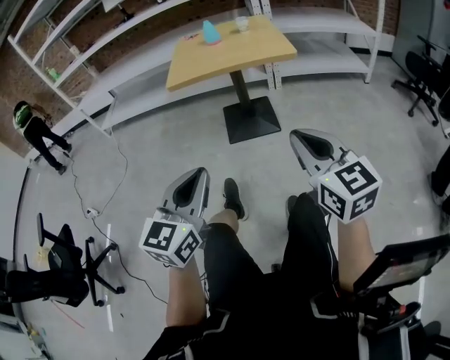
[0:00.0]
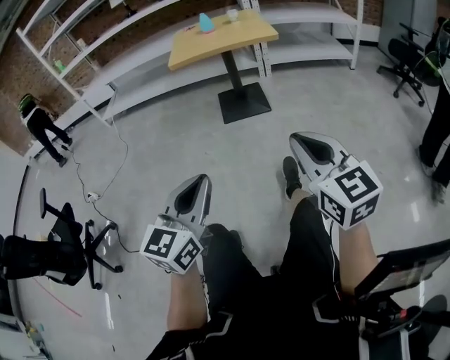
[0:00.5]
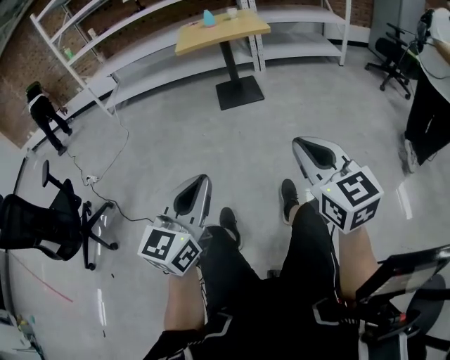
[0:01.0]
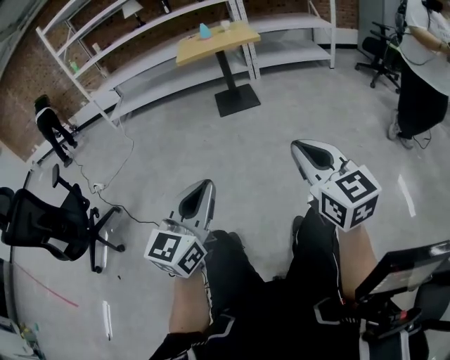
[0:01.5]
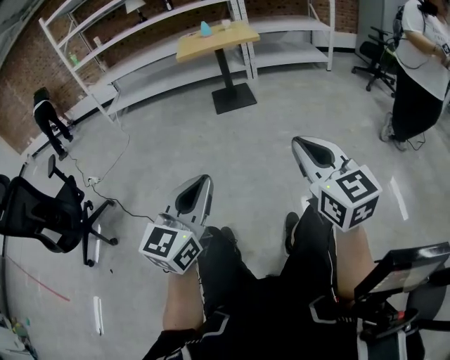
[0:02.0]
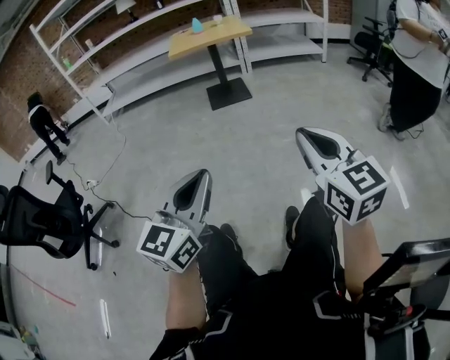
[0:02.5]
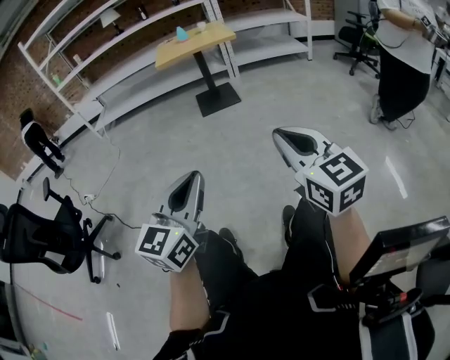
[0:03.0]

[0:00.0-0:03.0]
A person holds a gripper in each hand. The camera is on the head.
0:00.0 to 0:01.5: The two grippers travel together, backward, approximately 50 cm.
0:01.5 to 0:03.0: The grippers stay close to where they were, moving slightly.

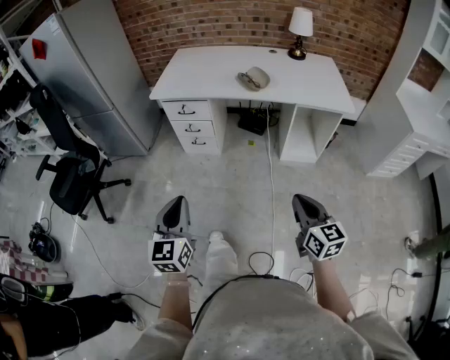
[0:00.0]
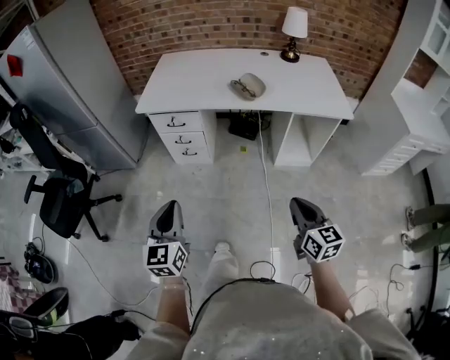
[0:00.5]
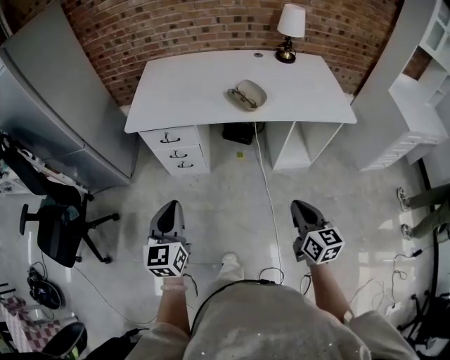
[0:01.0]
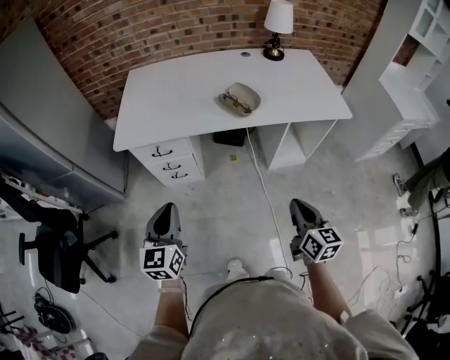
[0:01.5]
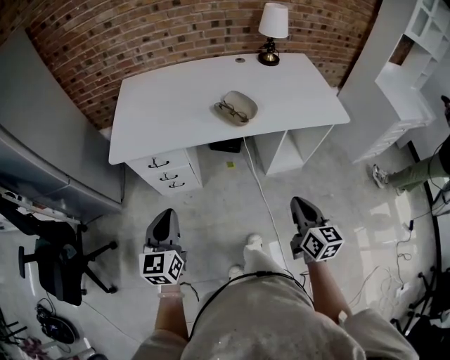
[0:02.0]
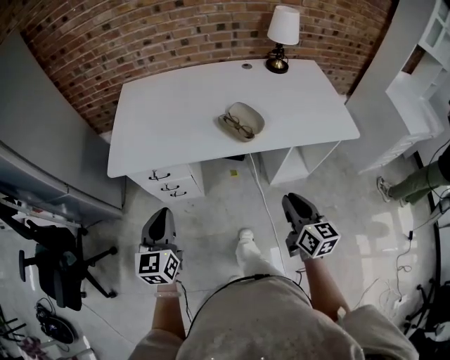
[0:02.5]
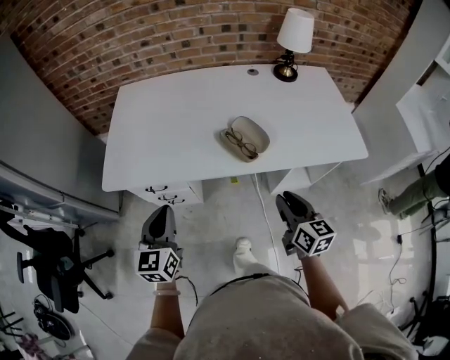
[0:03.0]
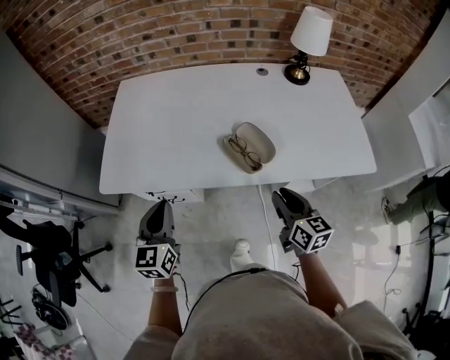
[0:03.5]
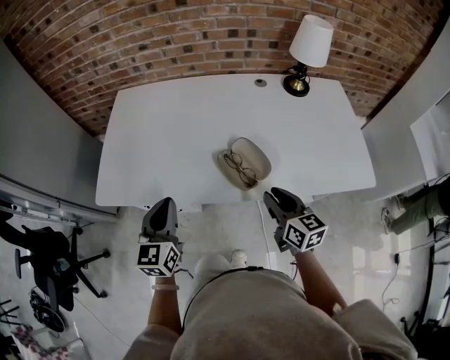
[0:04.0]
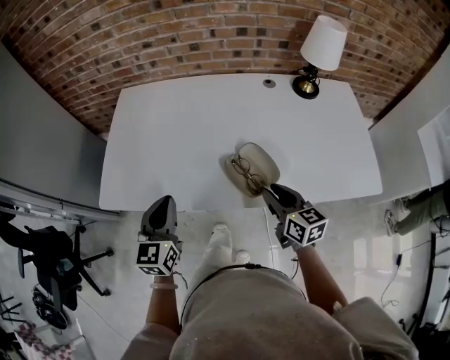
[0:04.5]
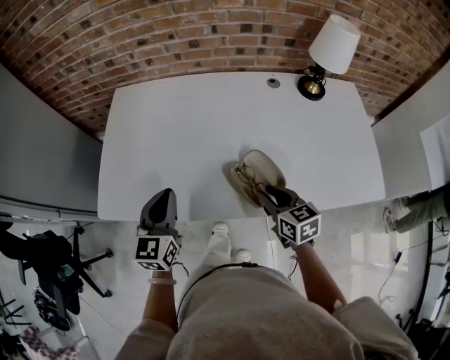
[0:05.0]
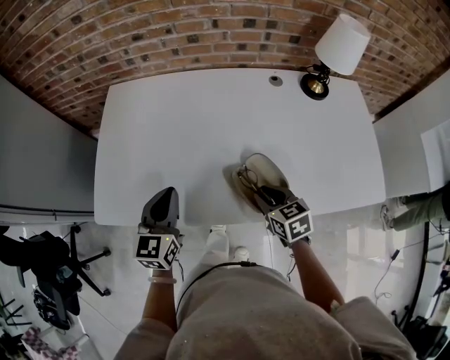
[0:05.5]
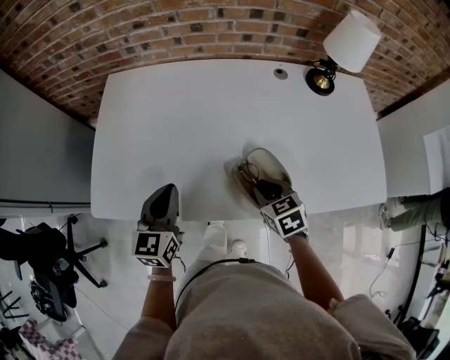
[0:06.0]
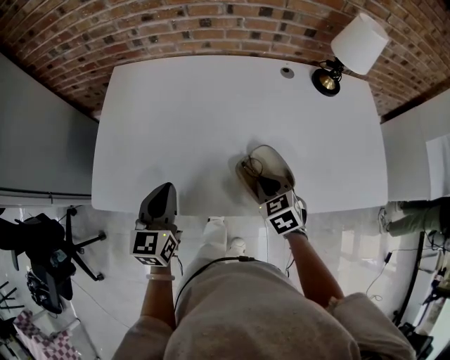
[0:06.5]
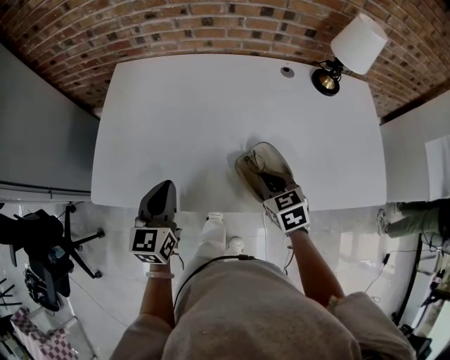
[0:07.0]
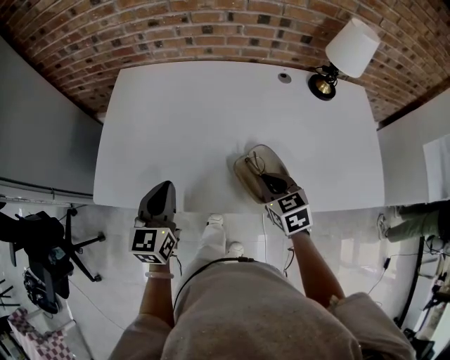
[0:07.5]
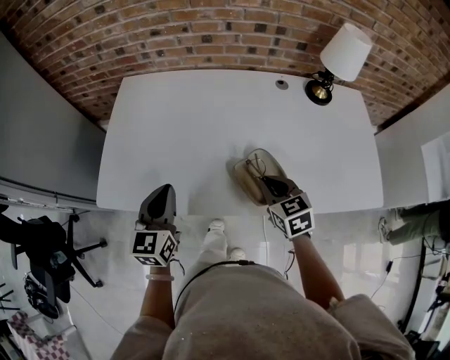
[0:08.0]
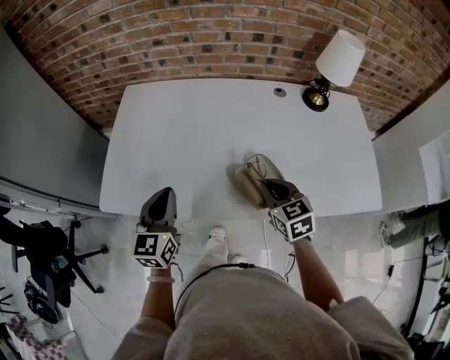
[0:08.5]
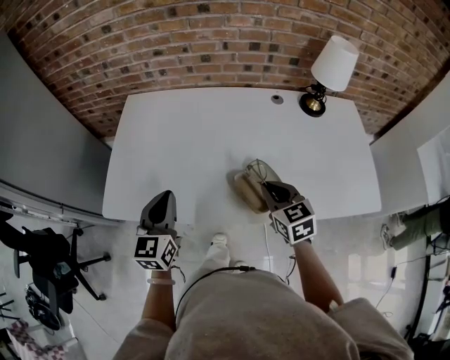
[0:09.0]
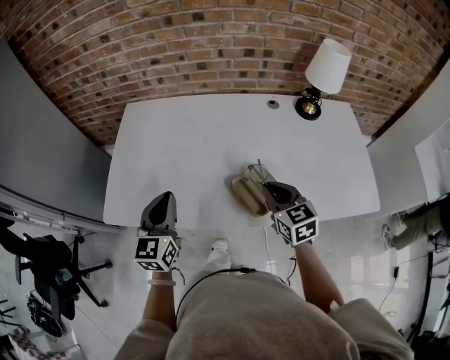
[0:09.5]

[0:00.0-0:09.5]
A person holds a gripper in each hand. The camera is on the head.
0:00.0 to 0:02.0: The grippers both shift forward by roughly 30 cm. The right gripper turns by some 20 degrees.
0:02.0 to 0:04.0: Both grippers travel together forward, approximately 30 cm. The right gripper opens.
0:04.0 to 0:05.5: The left gripper shifts about 10 cm forward, while the right gripper travels forward, downward and to the left by some 15 cm, and changes its angle by approximately 30 degrees.
0:05.5 to 0:07.5: The right gripper closes its fingers.
0:07.5 to 0:09.5: The two grippers go some 5 cm upward.

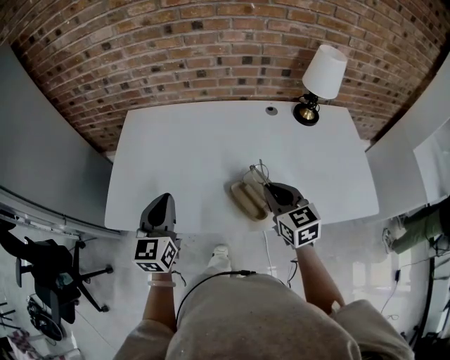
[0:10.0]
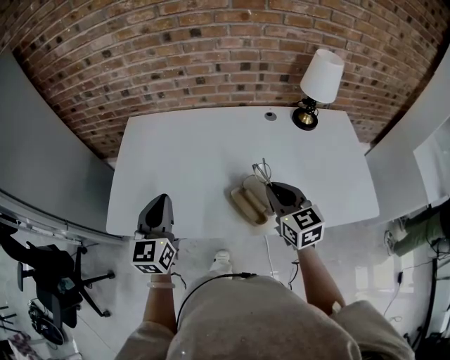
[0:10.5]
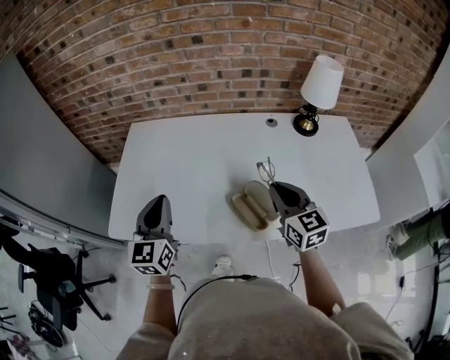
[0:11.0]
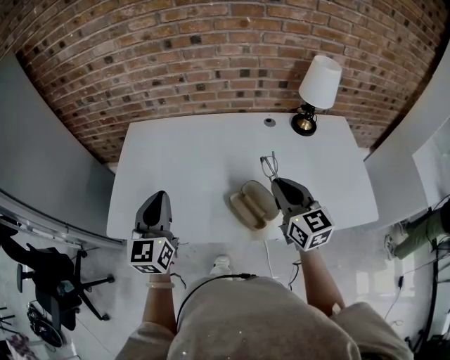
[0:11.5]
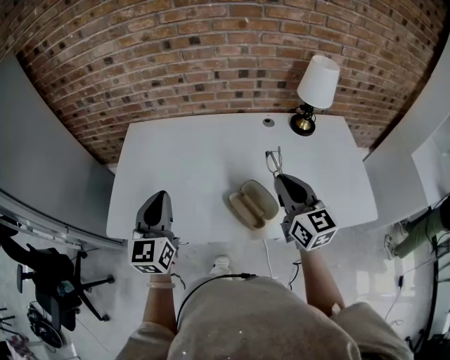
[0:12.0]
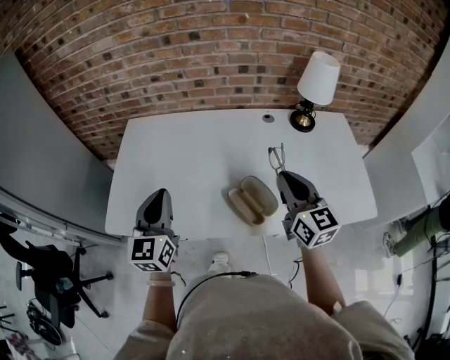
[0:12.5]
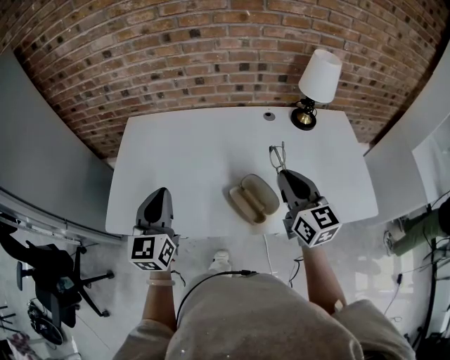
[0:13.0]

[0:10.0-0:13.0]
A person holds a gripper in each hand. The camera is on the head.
0:10.0 to 0:11.5: The left gripper shifts by about 5 cm. Meanwhile the right gripper moves upward, some 5 cm.
0:11.5 to 0:13.0: The grippers move only a little.

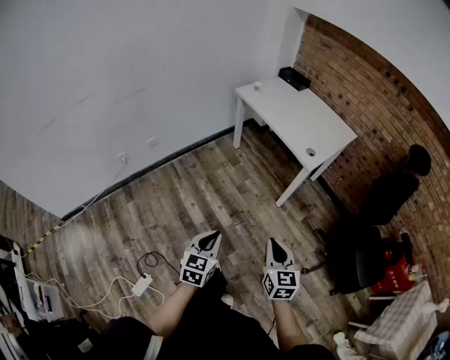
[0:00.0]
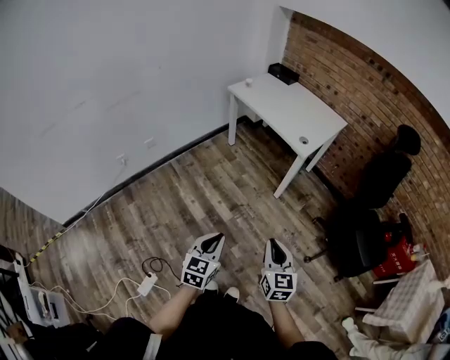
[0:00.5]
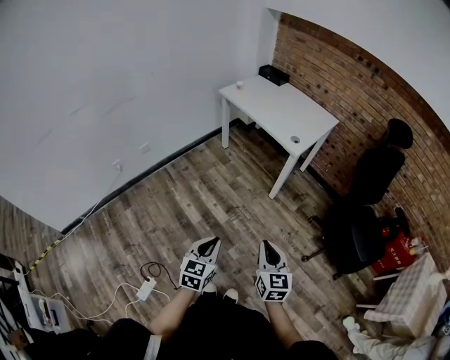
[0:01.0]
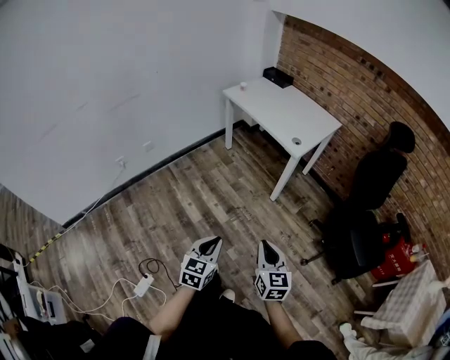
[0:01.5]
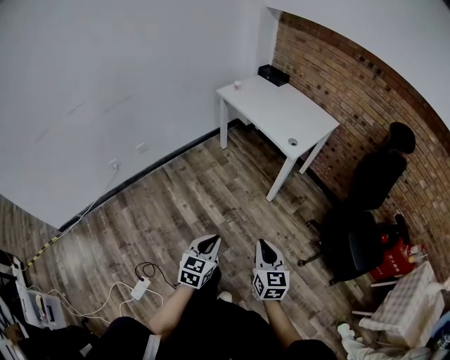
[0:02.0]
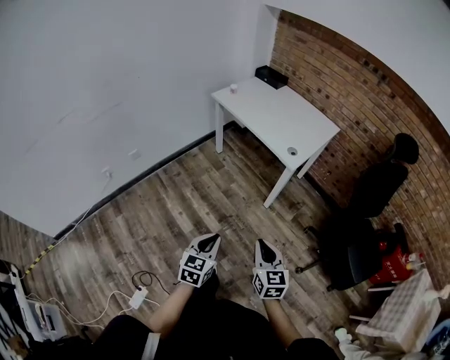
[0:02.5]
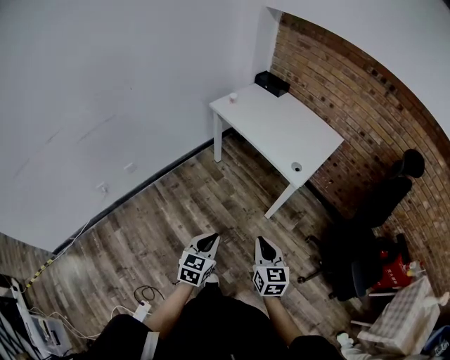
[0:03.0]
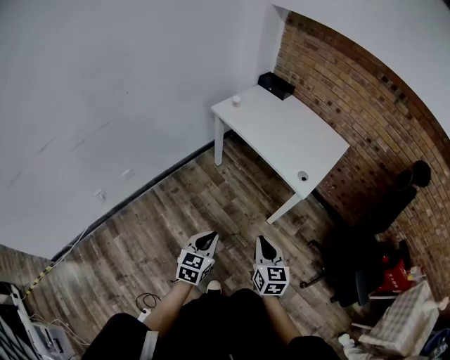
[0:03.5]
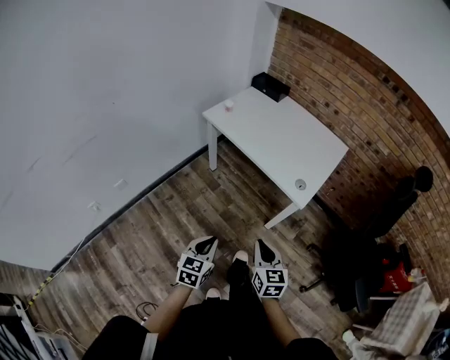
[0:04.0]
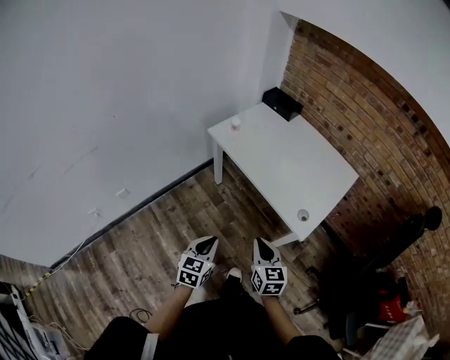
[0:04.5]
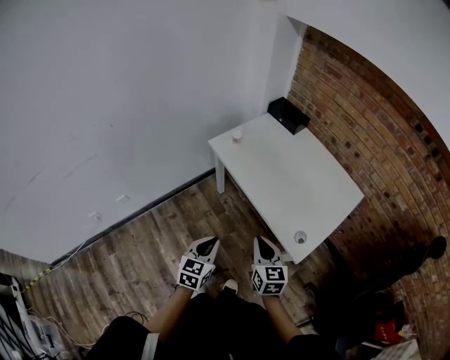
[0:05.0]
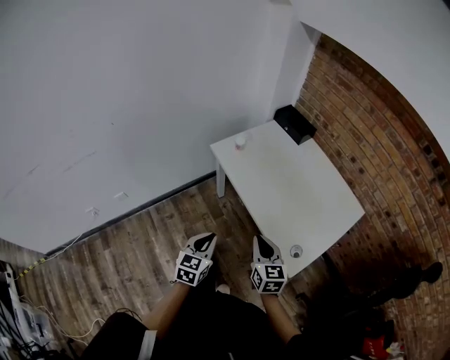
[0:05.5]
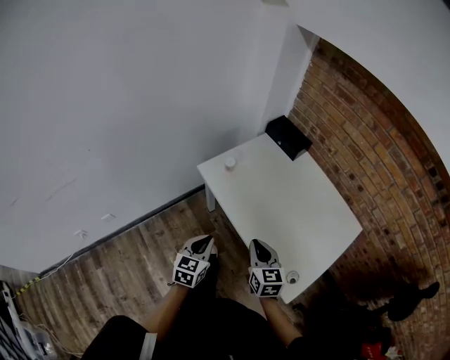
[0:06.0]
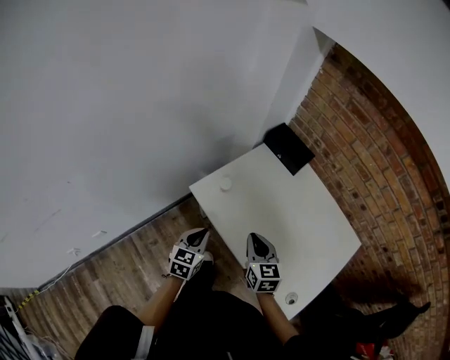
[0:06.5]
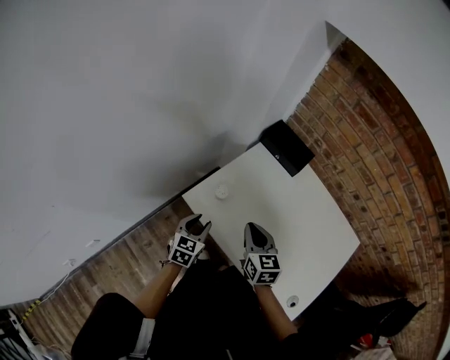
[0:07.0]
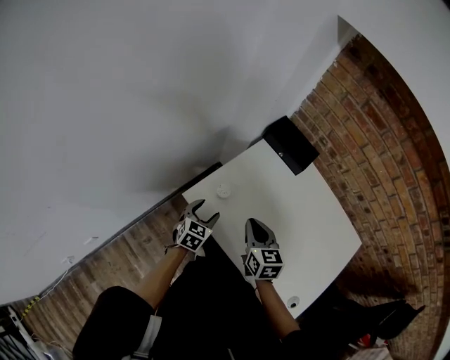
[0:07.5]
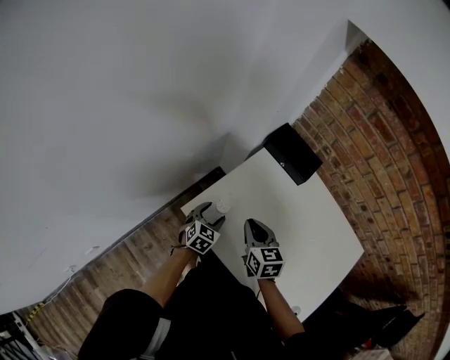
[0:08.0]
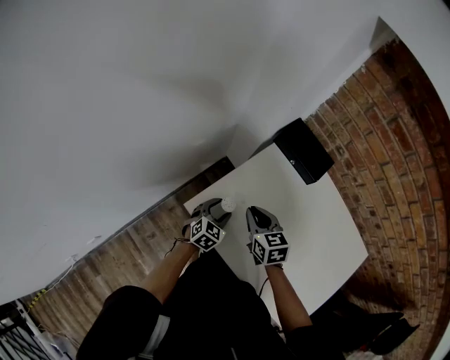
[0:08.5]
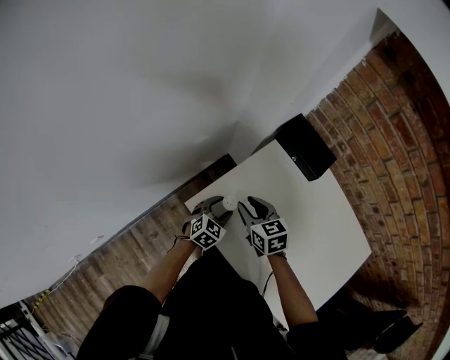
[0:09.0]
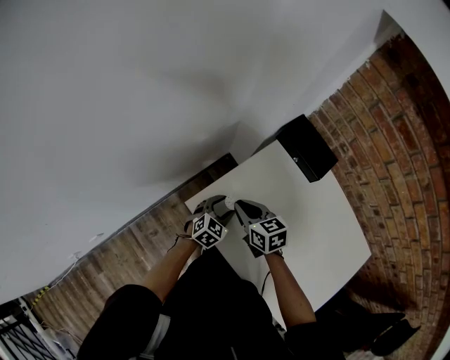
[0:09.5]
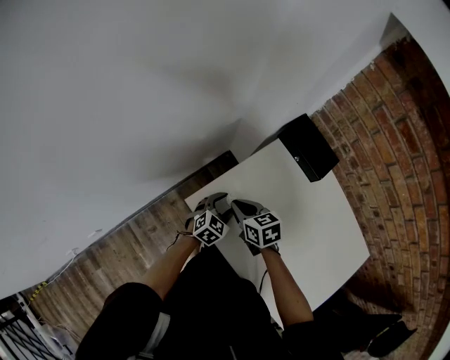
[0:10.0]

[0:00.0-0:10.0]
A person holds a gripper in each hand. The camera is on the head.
0:00.0 to 0:02.0: The left gripper travels to the right and backward by roughly 10 cm. Meanwhile the right gripper is displaced backward by about 5 cm.
0:02.0 to 0:04.0: The two grippers go about 35 cm forward.
0:04.0 to 0:06.0: The pair of grippers is taken forward, roughly 40 cm.
0:06.0 to 0:08.0: The right gripper shifts about 30 cm forward. The left gripper shifts about 40 cm forward and downward, swivels about 30 degrees, and opens up.
0:08.0 to 0:10.0: The right gripper is displaced to the left, downward and forward by approximately 10 cm, rotates approximately 30 degrees, and opens, then closes once more.

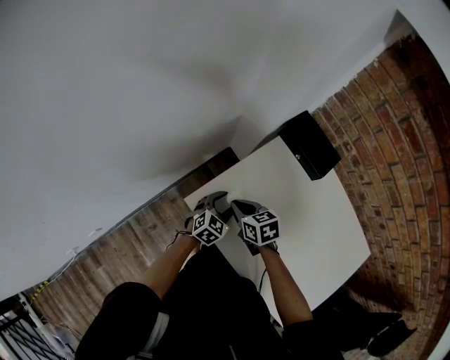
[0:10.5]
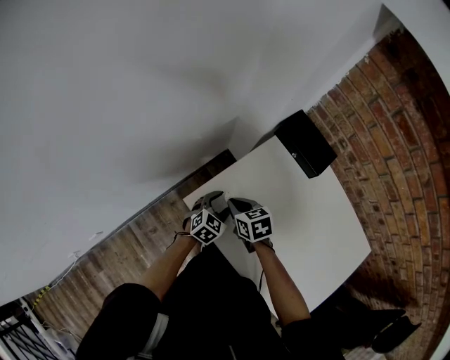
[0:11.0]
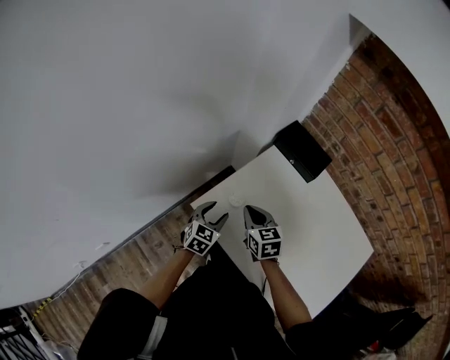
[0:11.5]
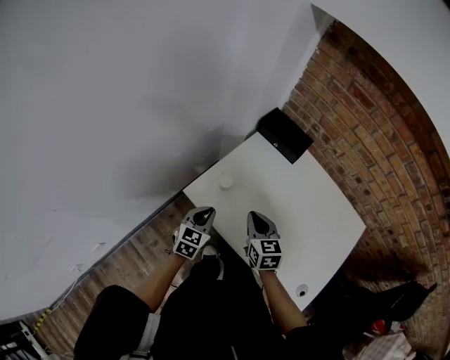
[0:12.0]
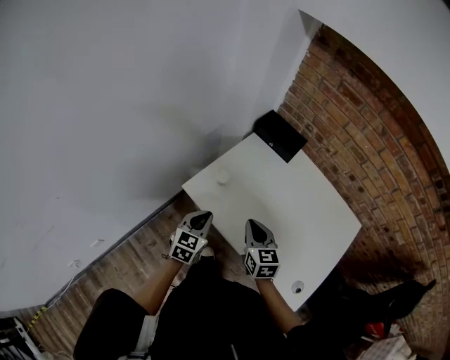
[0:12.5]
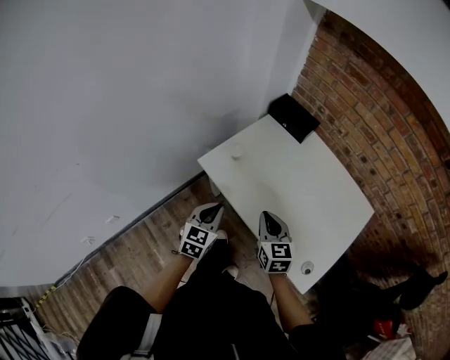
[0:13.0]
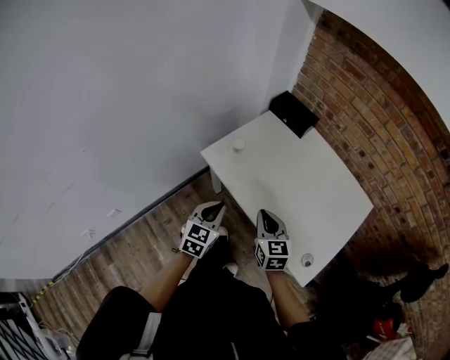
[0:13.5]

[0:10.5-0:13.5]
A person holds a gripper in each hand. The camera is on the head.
0:10.5 to 0:12.0: The right gripper is displaced backward, upward and to the right by about 20 cm, and rotates some 40 degrees; the left gripper is displaced backward, upward and to the left by approximately 15 cm, and closes up.
0:12.0 to 0:13.5: The two grippers go approximately 20 cm backward.
